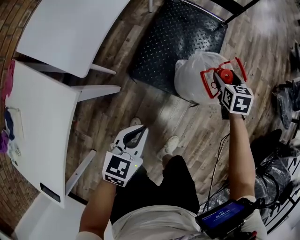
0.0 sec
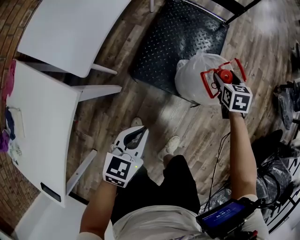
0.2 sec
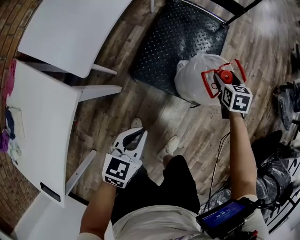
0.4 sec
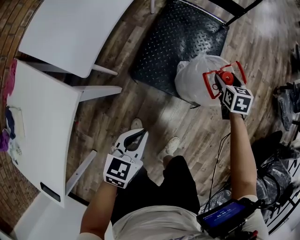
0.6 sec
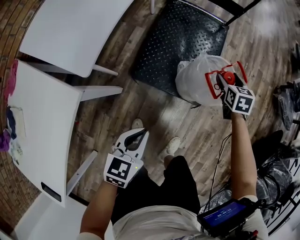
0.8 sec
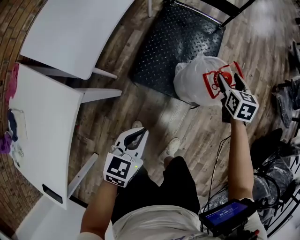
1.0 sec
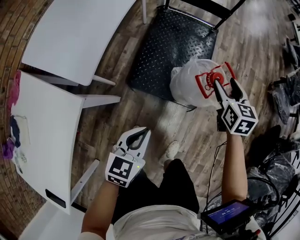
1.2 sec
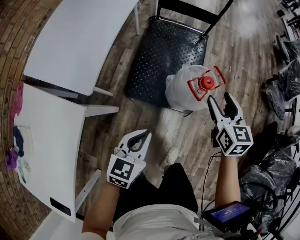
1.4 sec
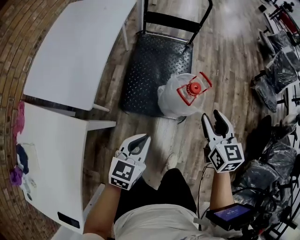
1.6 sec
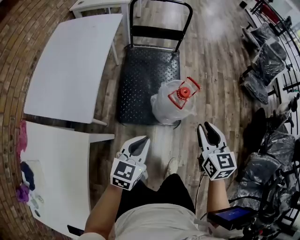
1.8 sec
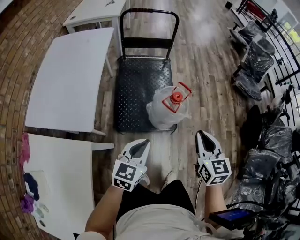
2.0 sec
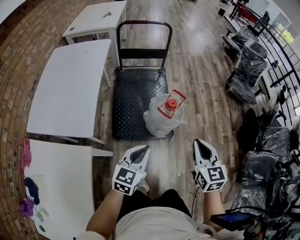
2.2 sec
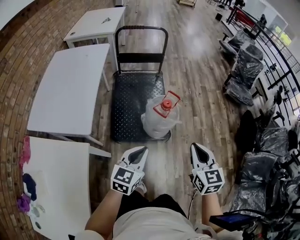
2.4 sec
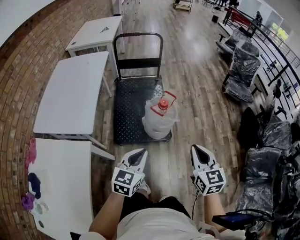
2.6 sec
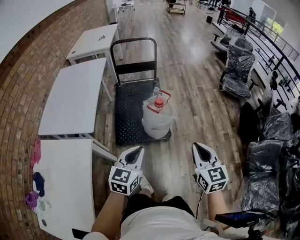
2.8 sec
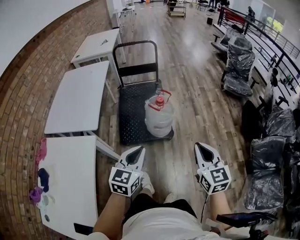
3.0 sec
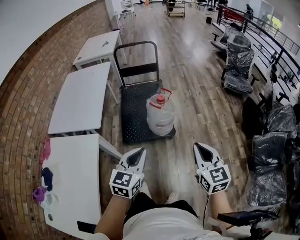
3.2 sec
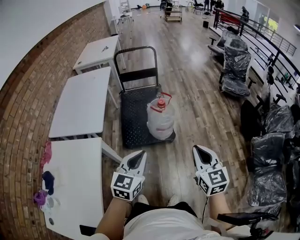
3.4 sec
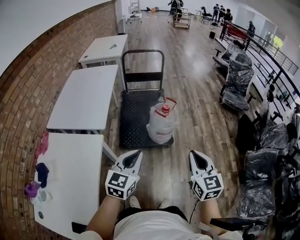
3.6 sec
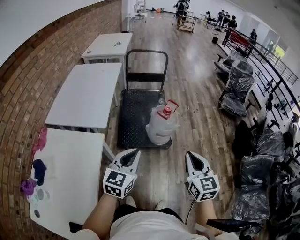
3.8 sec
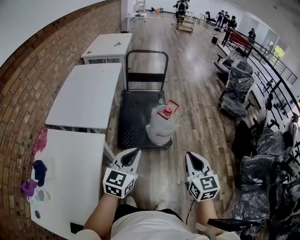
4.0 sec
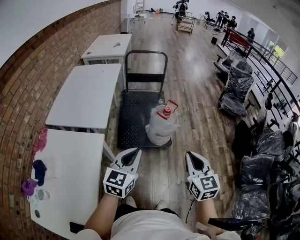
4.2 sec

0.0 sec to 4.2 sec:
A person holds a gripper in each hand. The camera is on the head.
0.0 sec to 1.4 sec: The right gripper goes approximately 20 cm upward and backward, and changes its angle by about 20 degrees; the left gripper moves upward, approximately 5 cm.
1.4 sec to 2.8 sec: The left gripper heads upward, backward and to the right, covering some 20 cm. Meanwhile the right gripper travels backward, upward and to the right by roughly 35 cm, and closes up.
2.8 sec to 4.2 sec: The right gripper travels to the left and backward by approximately 10 cm. The left gripper travels to the left, backward and upward by roughly 15 cm.

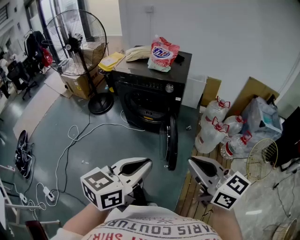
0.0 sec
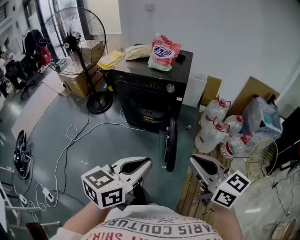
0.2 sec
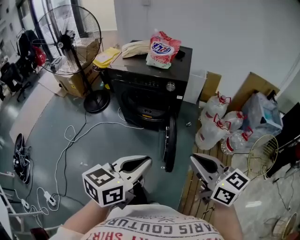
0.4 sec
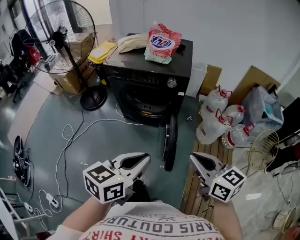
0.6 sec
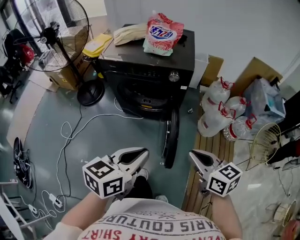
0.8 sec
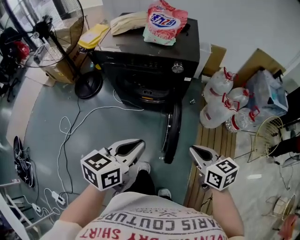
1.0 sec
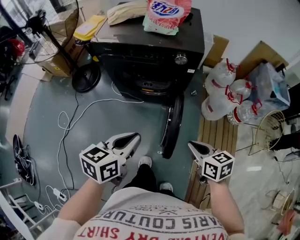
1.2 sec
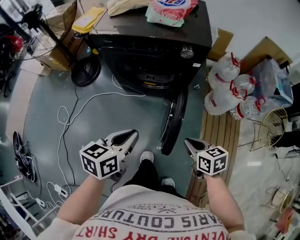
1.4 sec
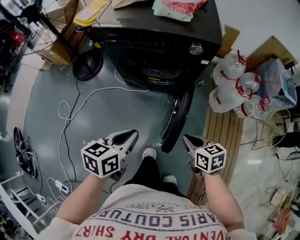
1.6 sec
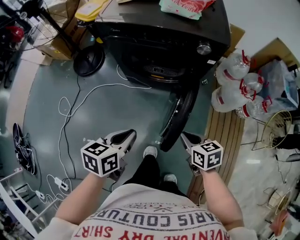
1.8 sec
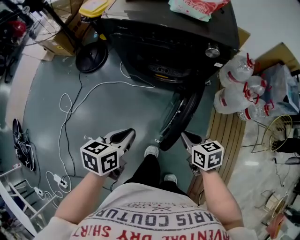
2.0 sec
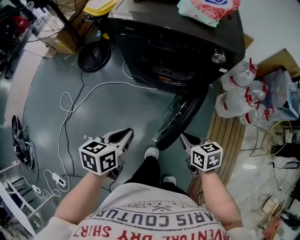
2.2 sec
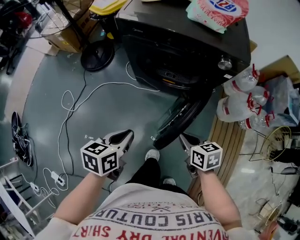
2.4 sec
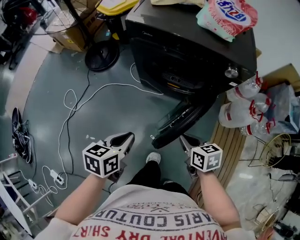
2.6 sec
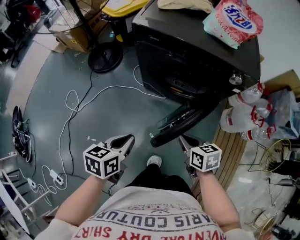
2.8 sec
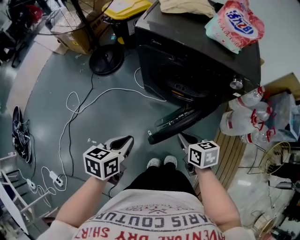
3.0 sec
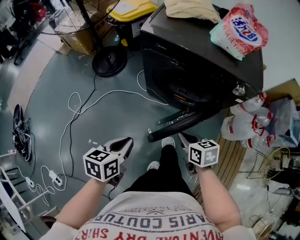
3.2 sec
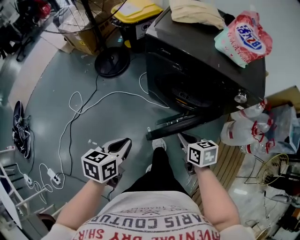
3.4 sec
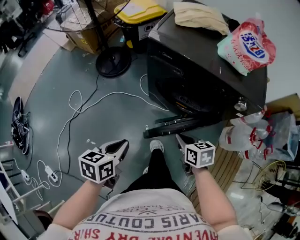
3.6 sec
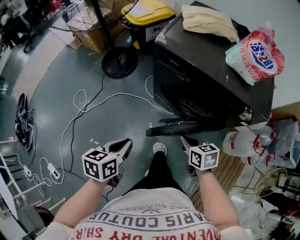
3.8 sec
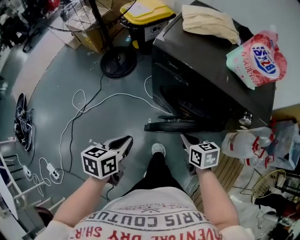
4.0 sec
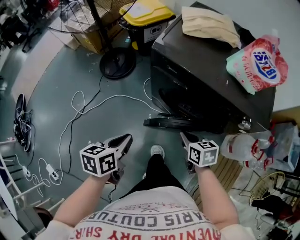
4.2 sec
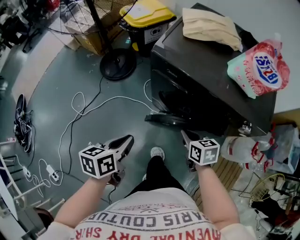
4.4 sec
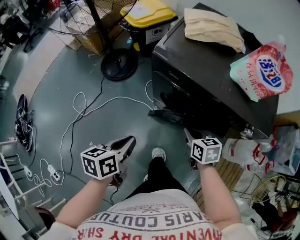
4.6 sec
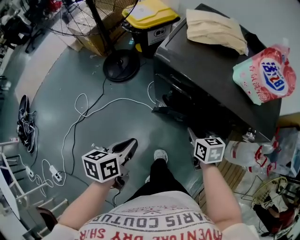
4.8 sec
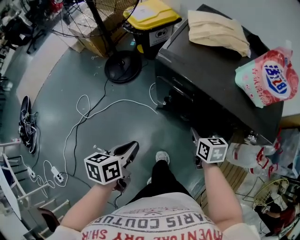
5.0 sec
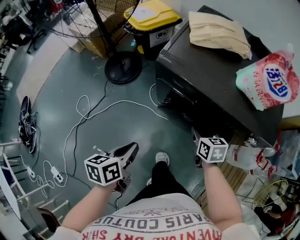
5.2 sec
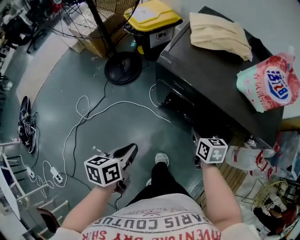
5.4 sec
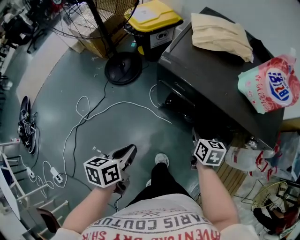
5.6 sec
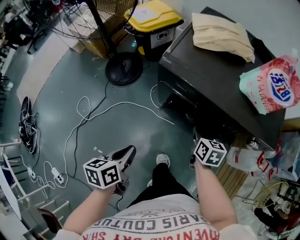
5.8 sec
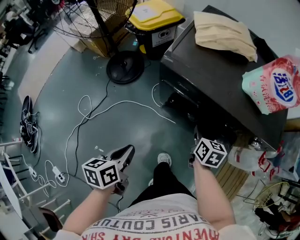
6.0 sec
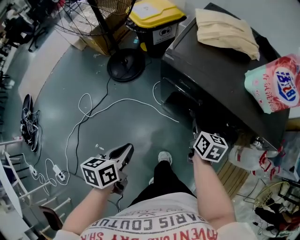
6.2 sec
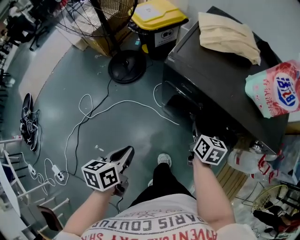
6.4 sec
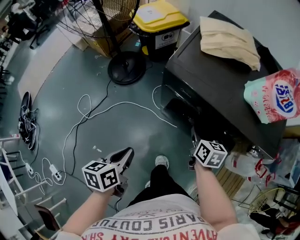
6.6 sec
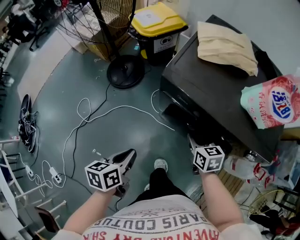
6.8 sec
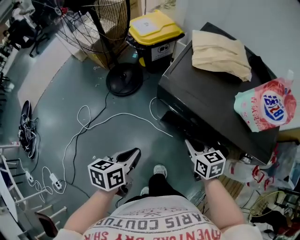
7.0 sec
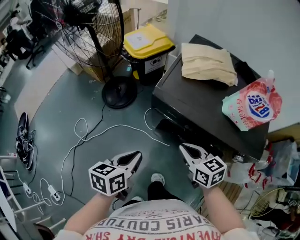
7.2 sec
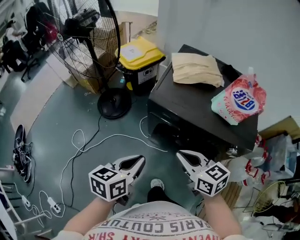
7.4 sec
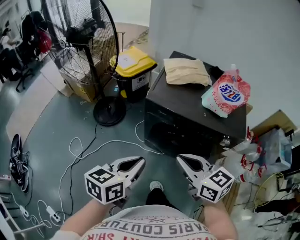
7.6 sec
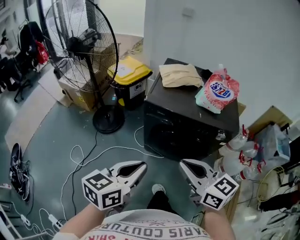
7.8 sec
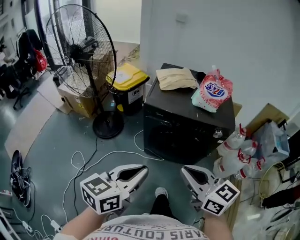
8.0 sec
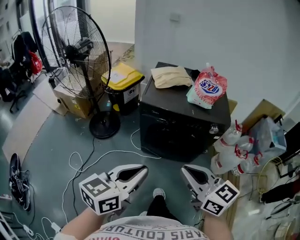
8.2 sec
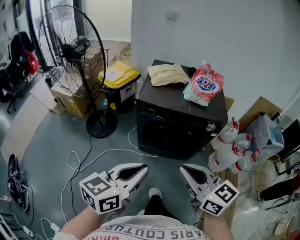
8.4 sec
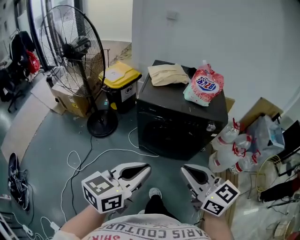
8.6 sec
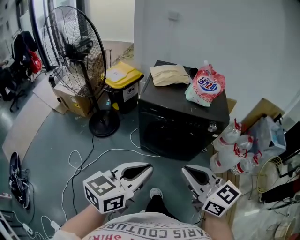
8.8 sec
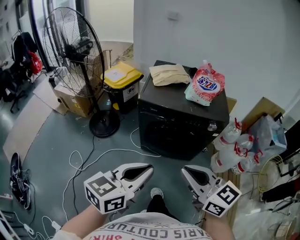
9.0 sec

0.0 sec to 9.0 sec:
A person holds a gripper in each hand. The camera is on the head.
0.0 sec to 1.6 sec: The left gripper goes roughly 40 cm downward, forward and to the left, and turns by some 20 degrees; the right gripper travels downward and forward by approximately 40 cm, and tips its fingers downward by roughly 40 degrees.
1.6 sec to 3.0 sec: The right gripper moves to the left and forward, about 20 cm. The left gripper is displaced to the left by roughly 15 cm.
3.0 sec to 4.4 sec: The grippers both shift forward by approximately 15 cm.
4.4 sec to 6.0 sec: The right gripper heads forward, covering about 10 cm, and changes its angle by some 20 degrees.
6.0 sec to 7.6 sec: The left gripper is displaced upward by about 20 cm, and rotates some 30 degrees; the right gripper goes roughly 30 cm upward and backward, and turns by about 40 degrees.
7.6 sec to 9.0 sec: Both grippers travel together backward and upward, some 15 cm. The left gripper turns by roughly 20 degrees.

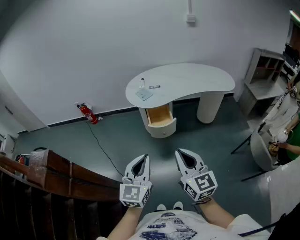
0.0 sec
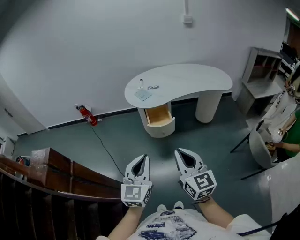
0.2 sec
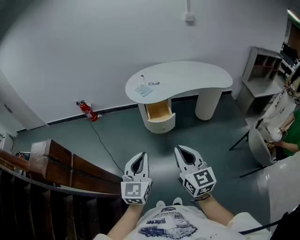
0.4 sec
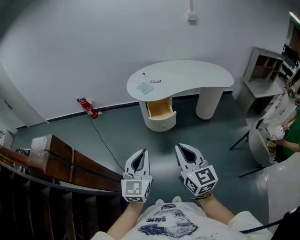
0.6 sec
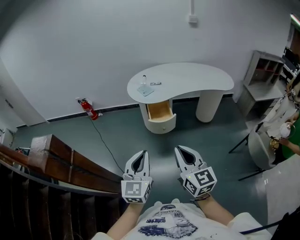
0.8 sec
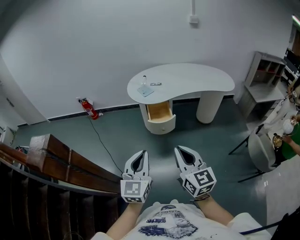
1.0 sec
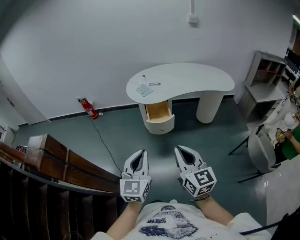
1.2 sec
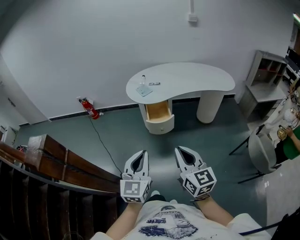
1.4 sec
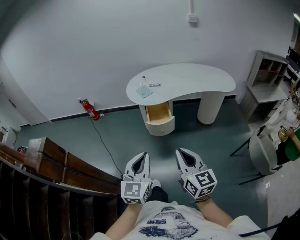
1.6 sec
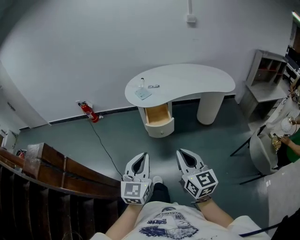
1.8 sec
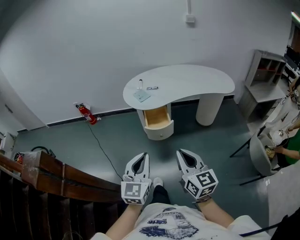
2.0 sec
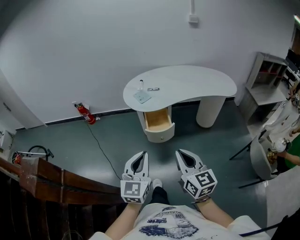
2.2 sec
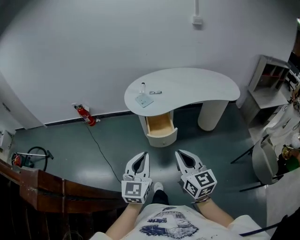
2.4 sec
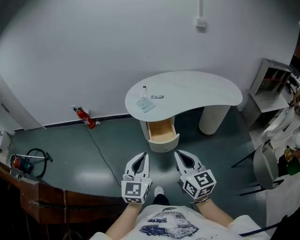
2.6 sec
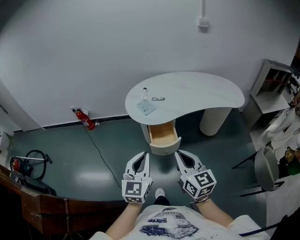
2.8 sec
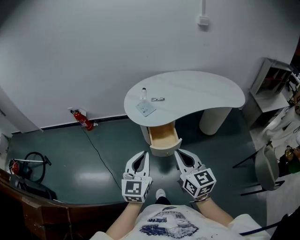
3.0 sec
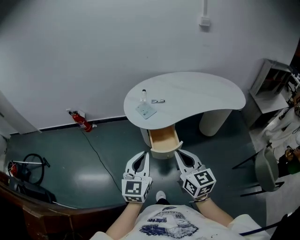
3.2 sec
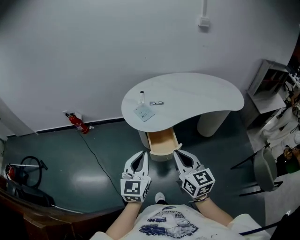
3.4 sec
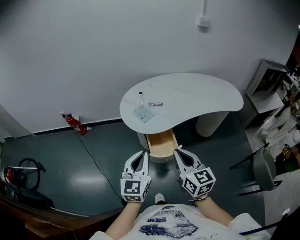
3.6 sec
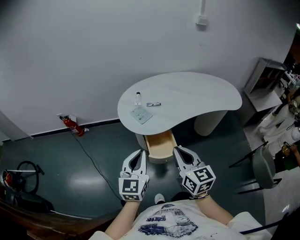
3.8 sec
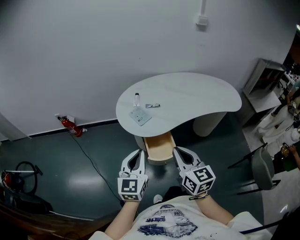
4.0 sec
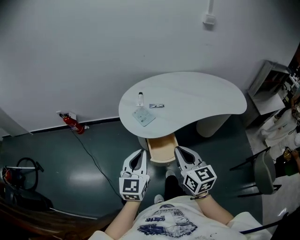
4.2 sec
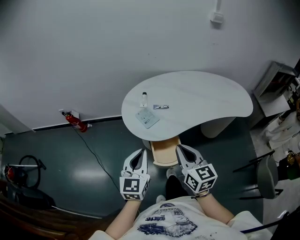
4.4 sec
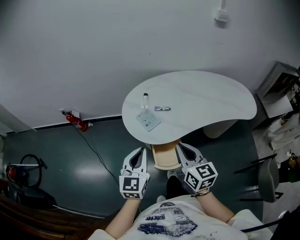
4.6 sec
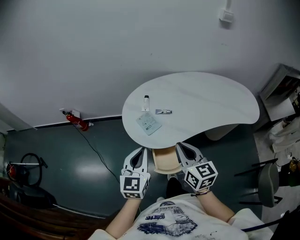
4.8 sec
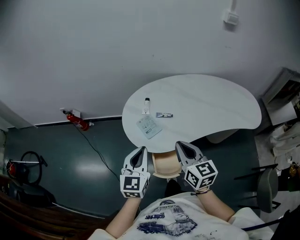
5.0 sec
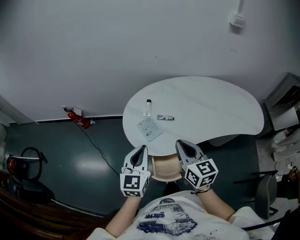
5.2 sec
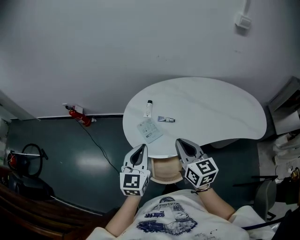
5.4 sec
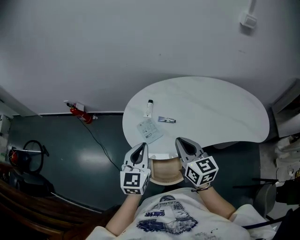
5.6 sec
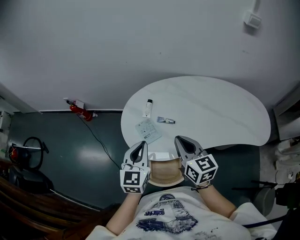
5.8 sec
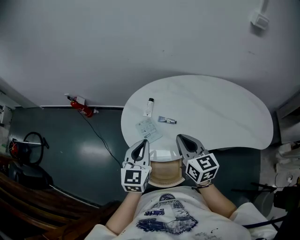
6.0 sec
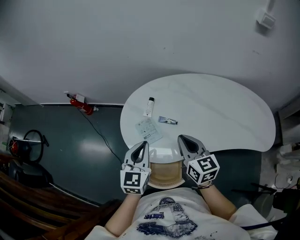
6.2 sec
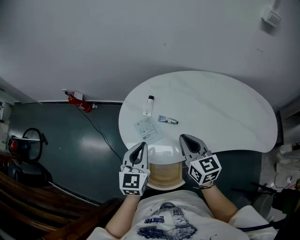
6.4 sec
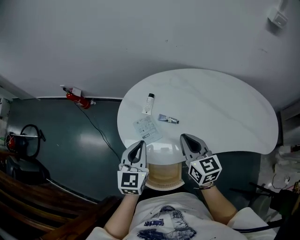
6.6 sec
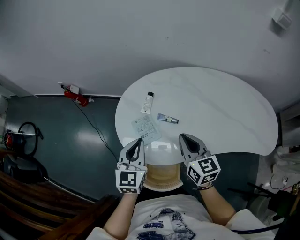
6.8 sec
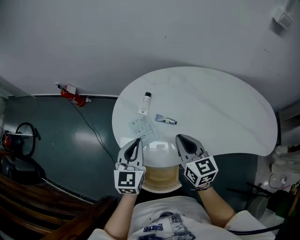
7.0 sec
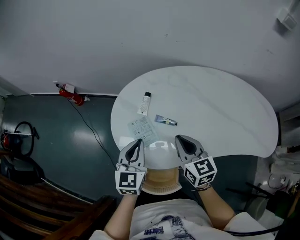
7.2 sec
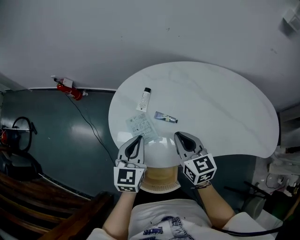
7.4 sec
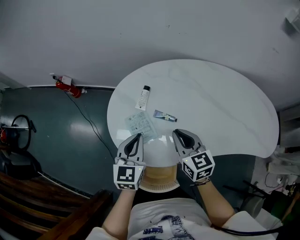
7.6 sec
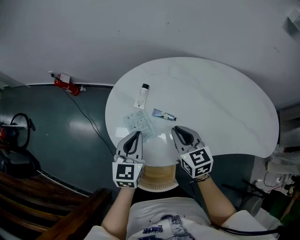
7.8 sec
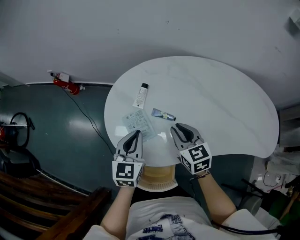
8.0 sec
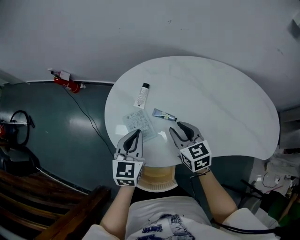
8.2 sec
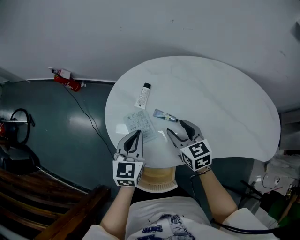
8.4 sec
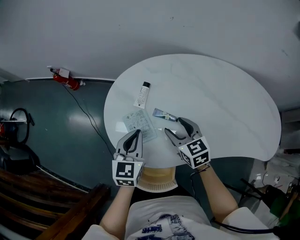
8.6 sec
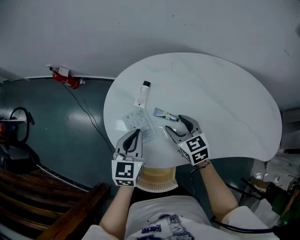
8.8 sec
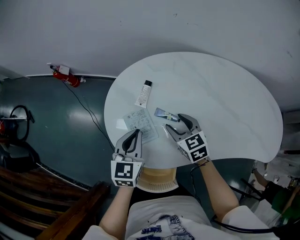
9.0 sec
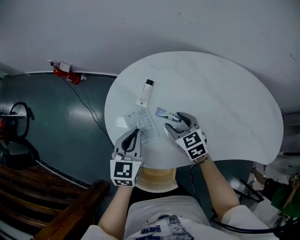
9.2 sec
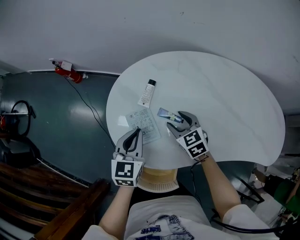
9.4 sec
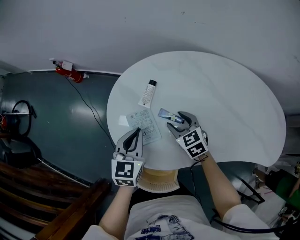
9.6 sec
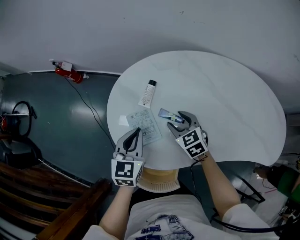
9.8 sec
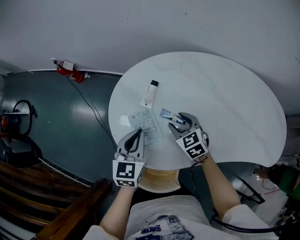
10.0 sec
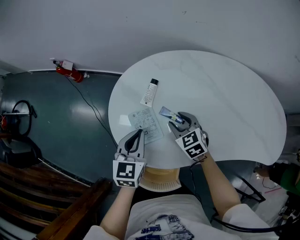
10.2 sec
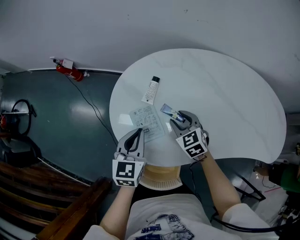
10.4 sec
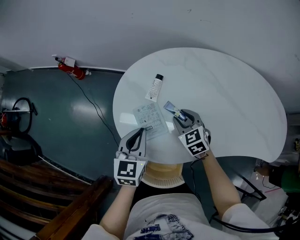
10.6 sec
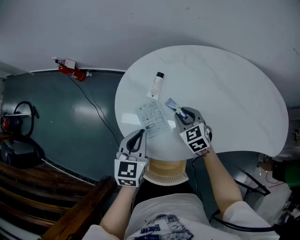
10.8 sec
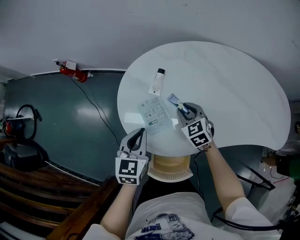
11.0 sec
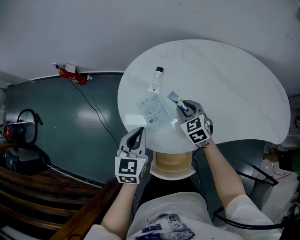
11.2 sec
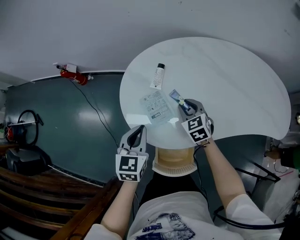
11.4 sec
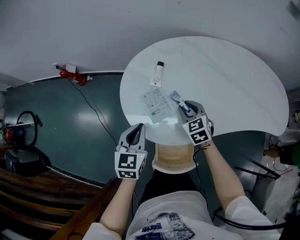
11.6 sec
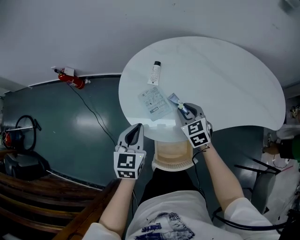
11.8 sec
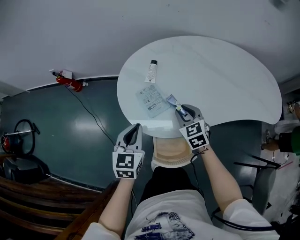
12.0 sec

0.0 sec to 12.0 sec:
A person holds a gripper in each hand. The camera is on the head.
0.0 sec to 1.6 sec: The grippers move only a little.
1.6 sec to 3.0 sec: Both grippers move forward, roughly 25 cm.
3.0 sec to 4.4 sec: The two grippers go roughly 20 cm forward.
4.4 sec to 6.0 sec: Both grippers move forward, approximately 20 cm.
6.0 sec to 7.6 sec: The grippers both shift downward and forward by about 15 cm.
7.6 sec to 9.0 sec: The right gripper travels downward and forward by roughly 10 cm, and opens up.
9.0 sec to 10.4 sec: The grippers stay close to where they were, moving slightly.
10.4 sec to 12.0 sec: The right gripper moves backward, roughly 10 cm. Meanwhile the left gripper heads backward and to the left, covering about 10 cm.
